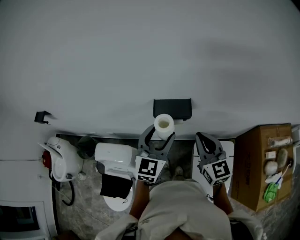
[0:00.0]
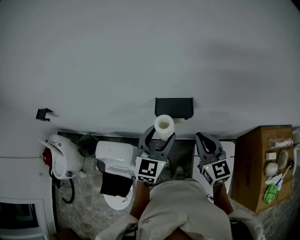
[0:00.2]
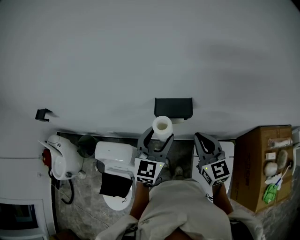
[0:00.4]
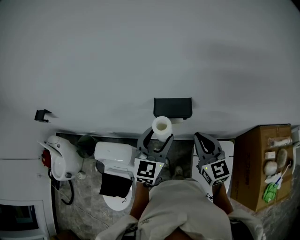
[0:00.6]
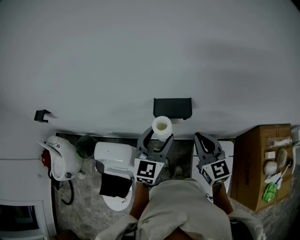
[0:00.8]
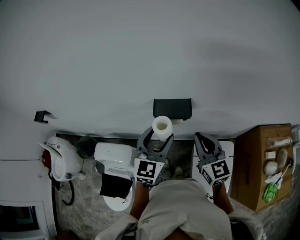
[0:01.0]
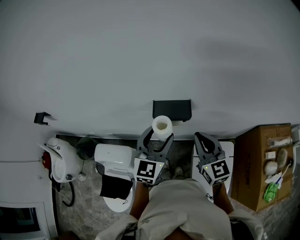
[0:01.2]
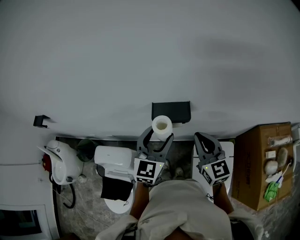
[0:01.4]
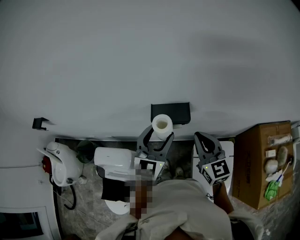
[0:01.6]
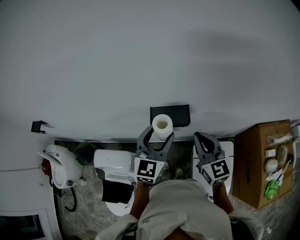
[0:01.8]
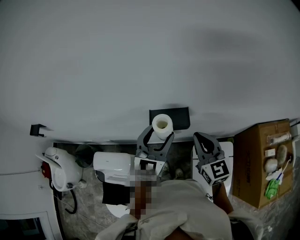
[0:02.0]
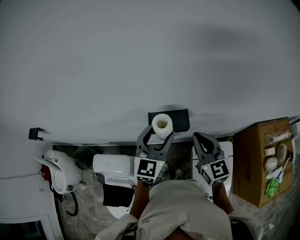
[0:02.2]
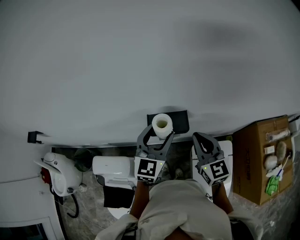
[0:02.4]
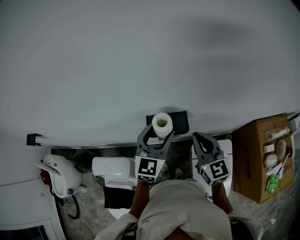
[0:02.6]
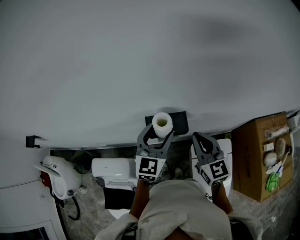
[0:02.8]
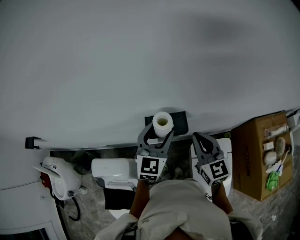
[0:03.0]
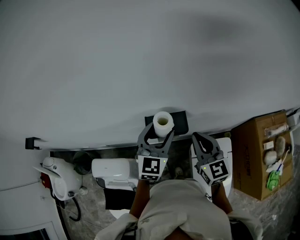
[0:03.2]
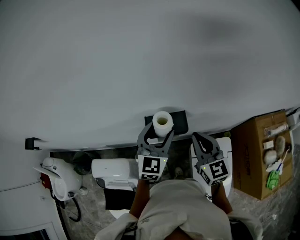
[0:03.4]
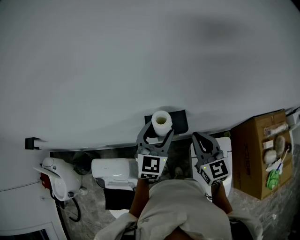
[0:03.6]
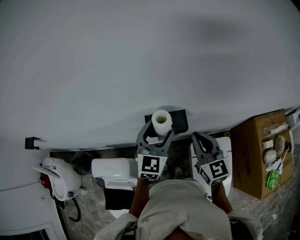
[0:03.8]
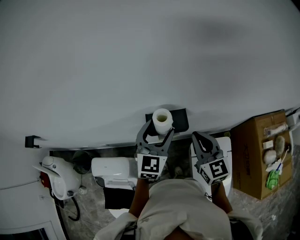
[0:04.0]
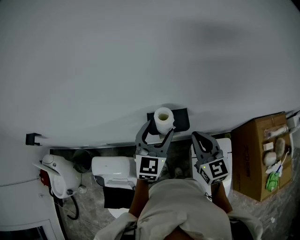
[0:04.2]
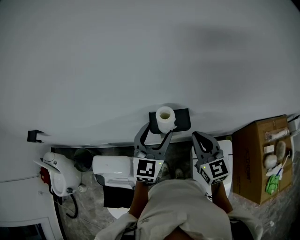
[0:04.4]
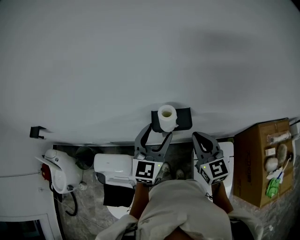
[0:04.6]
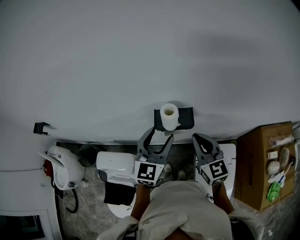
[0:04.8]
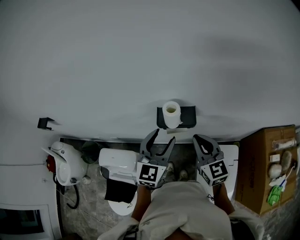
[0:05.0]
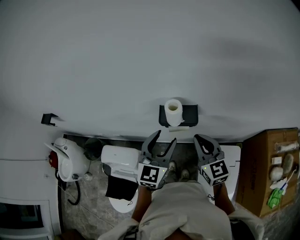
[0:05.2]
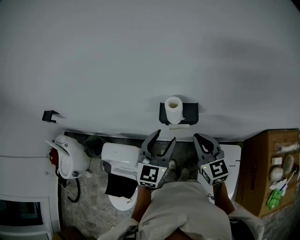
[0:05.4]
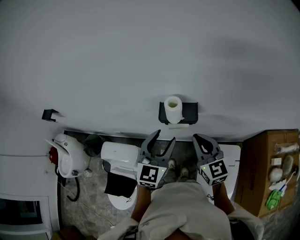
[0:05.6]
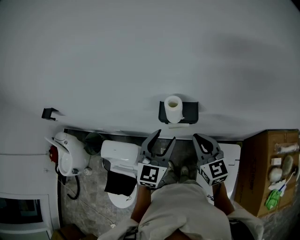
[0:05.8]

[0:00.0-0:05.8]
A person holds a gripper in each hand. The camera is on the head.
0:00.0 to 0:01.4: The grippers stay close to where they were, moving slightly.
0:01.4 to 0:02.8: The two grippers go approximately 5 cm forward.
0:02.8 to 0:04.4: The grippers make only small movements.
0:04.4 to 0:05.8: The left gripper heads backward, covering about 5 cm.

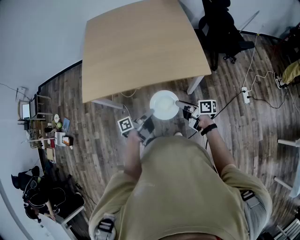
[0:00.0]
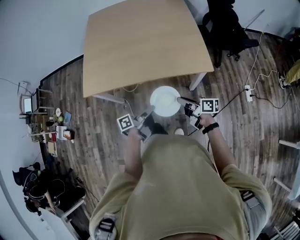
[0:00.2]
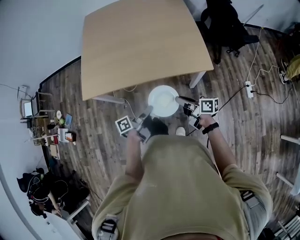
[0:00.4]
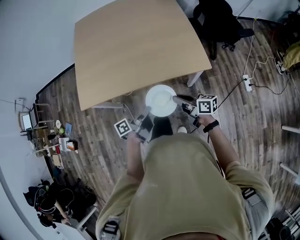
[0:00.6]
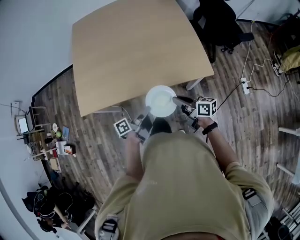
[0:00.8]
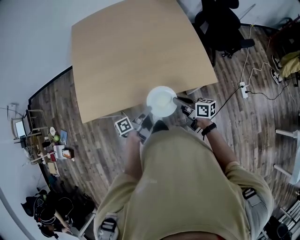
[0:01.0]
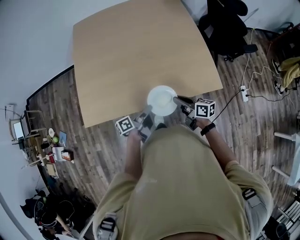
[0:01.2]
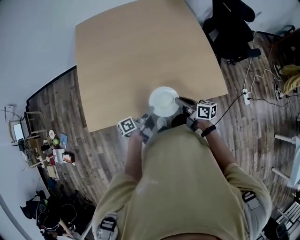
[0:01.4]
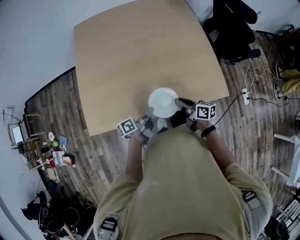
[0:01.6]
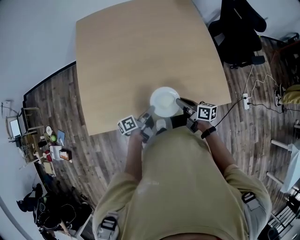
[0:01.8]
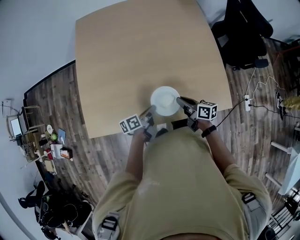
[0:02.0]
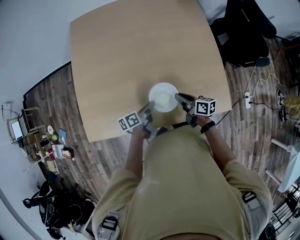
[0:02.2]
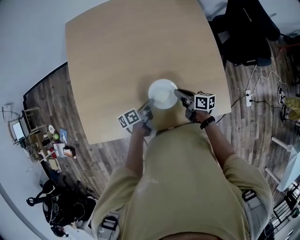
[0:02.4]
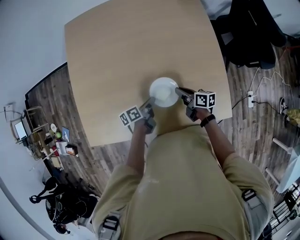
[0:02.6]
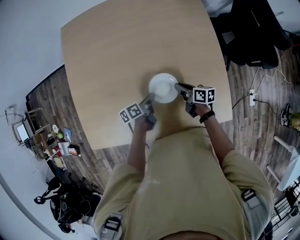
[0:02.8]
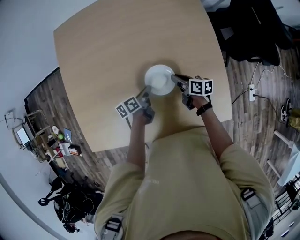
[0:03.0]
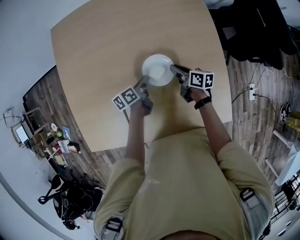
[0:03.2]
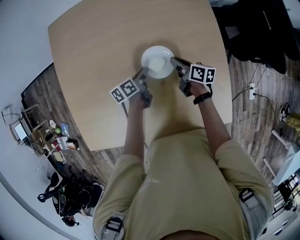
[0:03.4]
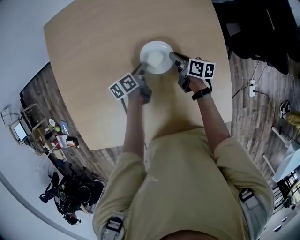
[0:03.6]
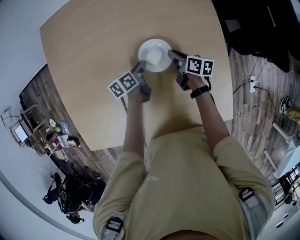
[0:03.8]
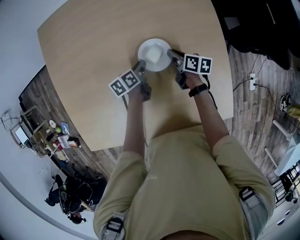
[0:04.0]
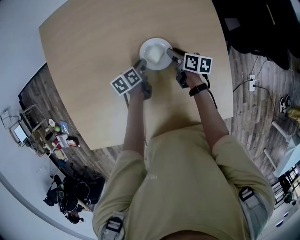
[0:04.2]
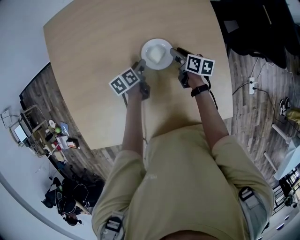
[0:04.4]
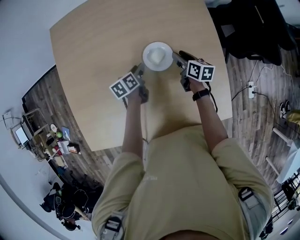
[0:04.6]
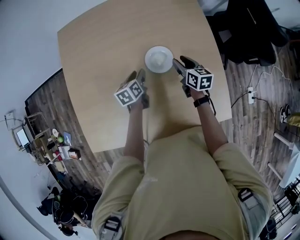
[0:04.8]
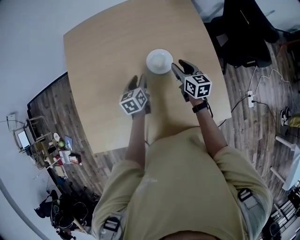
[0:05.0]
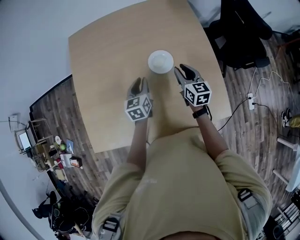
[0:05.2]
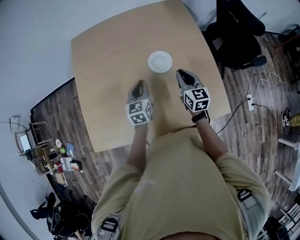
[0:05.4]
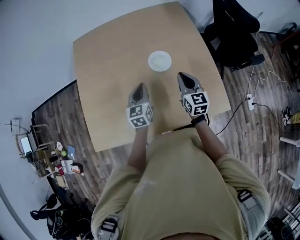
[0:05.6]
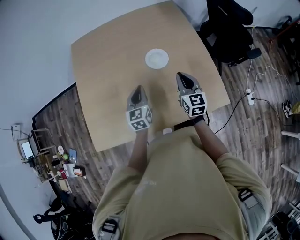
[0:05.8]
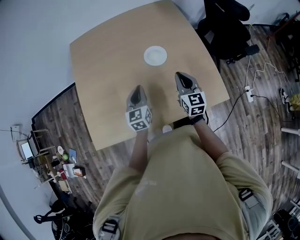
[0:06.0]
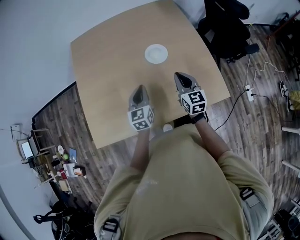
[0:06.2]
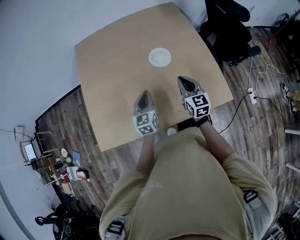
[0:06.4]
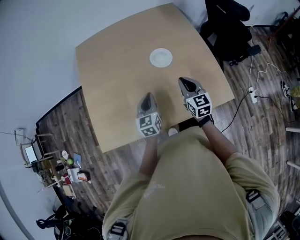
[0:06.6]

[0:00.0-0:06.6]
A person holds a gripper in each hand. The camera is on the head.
0:00.0 to 0:01.6: The grippers both shift forward by about 25 cm.
0:01.6 to 0:03.2: Both grippers travel together forward, some 35 cm. The left gripper rotates approximately 30 degrees.
0:03.2 to 0:05.0: The two grippers go about 10 cm upward. The left gripper changes its angle by approximately 40 degrees, and opens up. Meanwhile the right gripper changes its angle by approximately 40 degrees, and opens.
0:05.0 to 0:06.6: The grippers both shift backward by roughly 20 cm. The right gripper swivels some 20 degrees, and closes up. The left gripper swivels some 20 degrees, and closes.

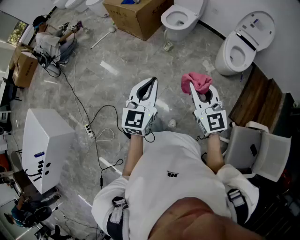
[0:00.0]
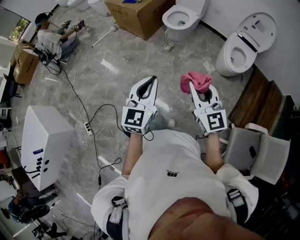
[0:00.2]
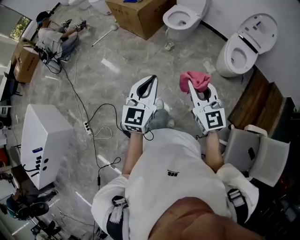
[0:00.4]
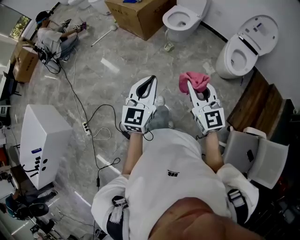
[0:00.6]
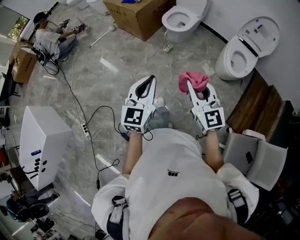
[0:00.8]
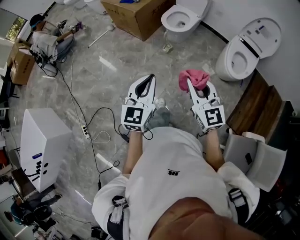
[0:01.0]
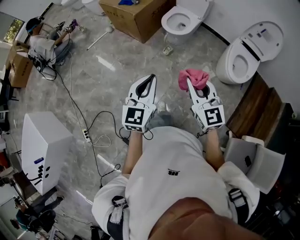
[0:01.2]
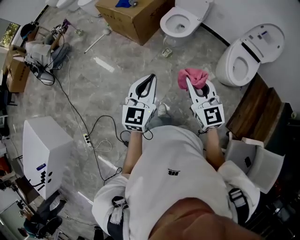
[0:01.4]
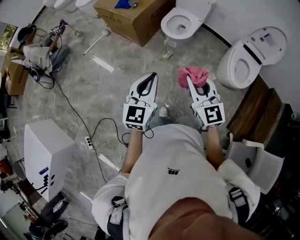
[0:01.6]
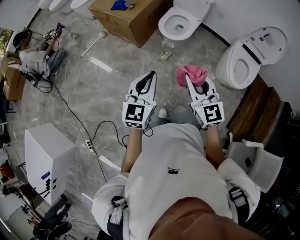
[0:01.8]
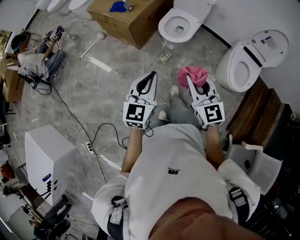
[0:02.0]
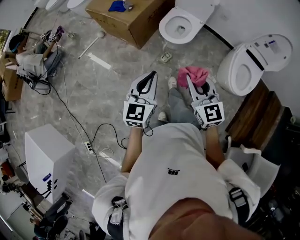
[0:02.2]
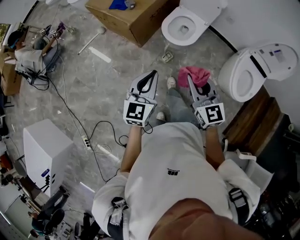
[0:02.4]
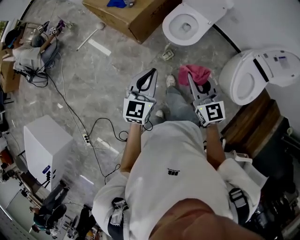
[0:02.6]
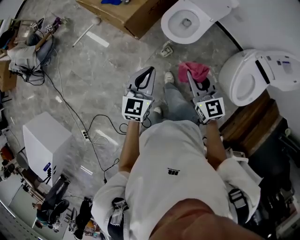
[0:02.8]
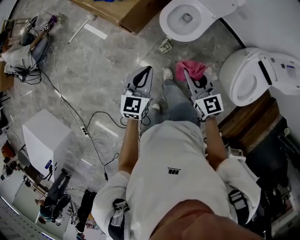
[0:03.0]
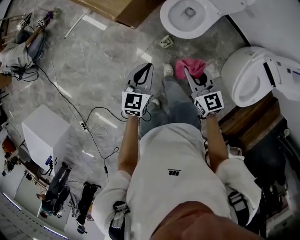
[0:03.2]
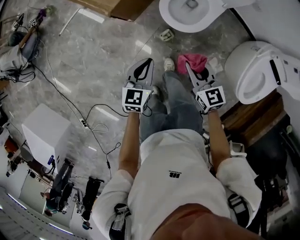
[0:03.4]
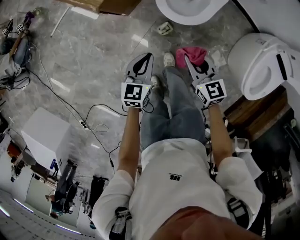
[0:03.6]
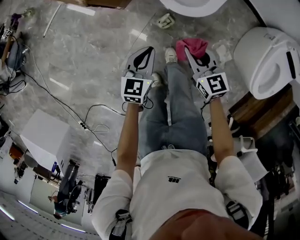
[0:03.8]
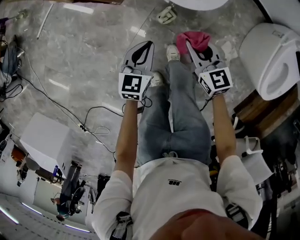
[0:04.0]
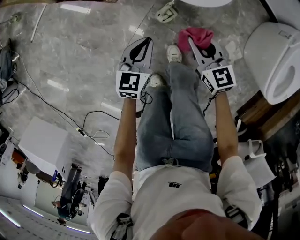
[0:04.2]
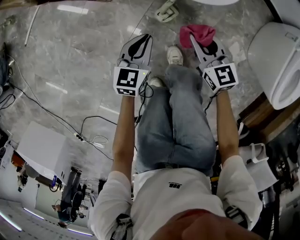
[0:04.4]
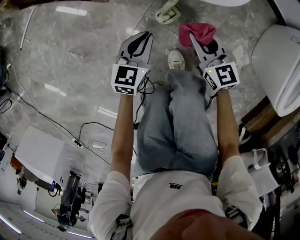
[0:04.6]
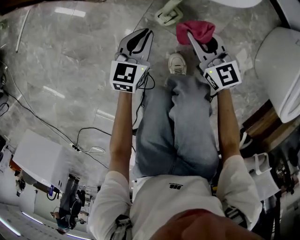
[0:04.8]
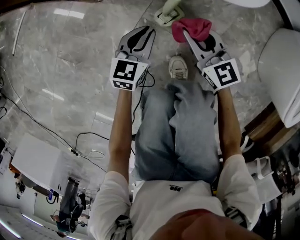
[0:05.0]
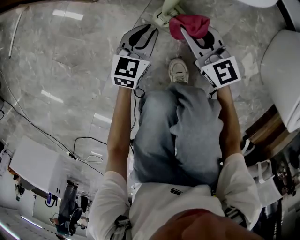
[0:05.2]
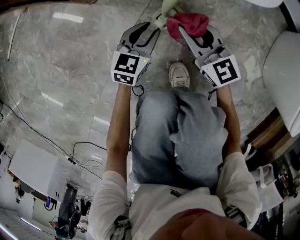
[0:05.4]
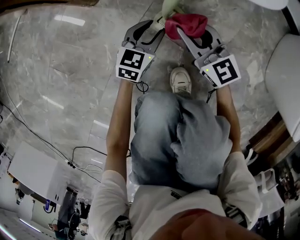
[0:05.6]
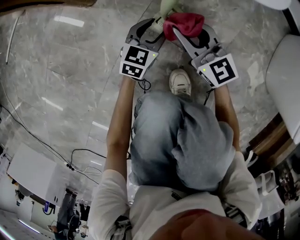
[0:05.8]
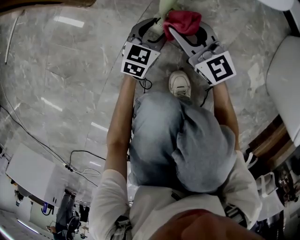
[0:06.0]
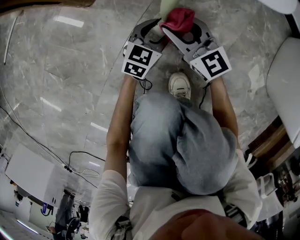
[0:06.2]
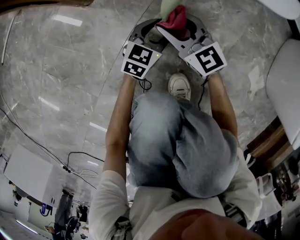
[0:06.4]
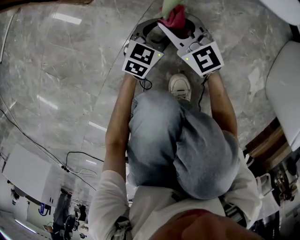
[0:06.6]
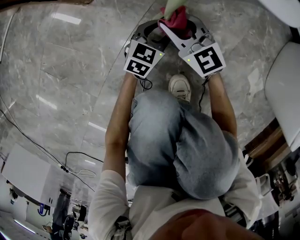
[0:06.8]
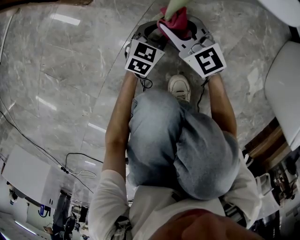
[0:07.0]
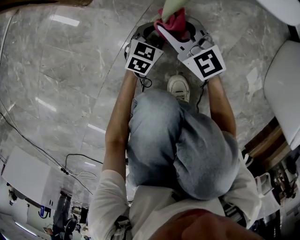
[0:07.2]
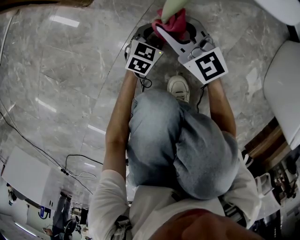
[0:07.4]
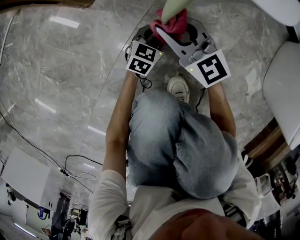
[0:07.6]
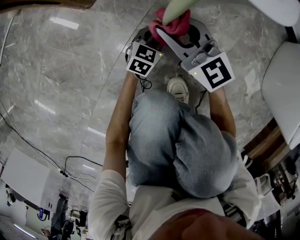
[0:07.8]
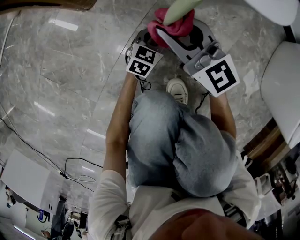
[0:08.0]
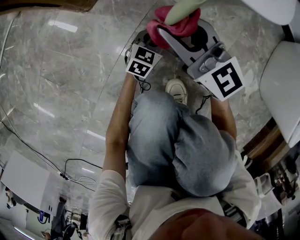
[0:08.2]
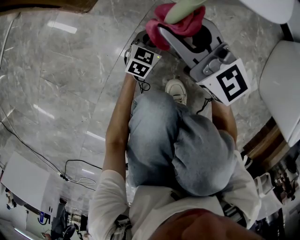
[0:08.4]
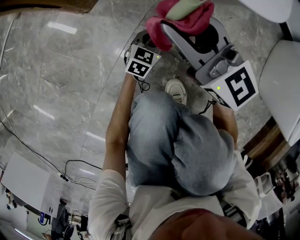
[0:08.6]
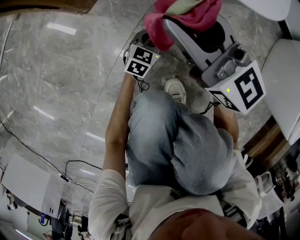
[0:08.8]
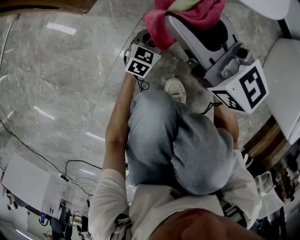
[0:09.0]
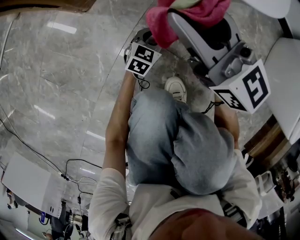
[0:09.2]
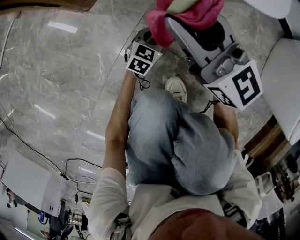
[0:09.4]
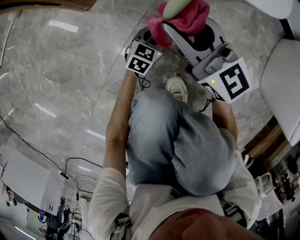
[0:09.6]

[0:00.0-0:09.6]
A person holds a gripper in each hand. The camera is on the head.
0:00.0 to 0:01.6: The grippers both shift forward by roughly 30 cm.
0:01.6 to 0:03.2: Both grippers are carried forward, approximately 40 cm. The grippers both shift downward by some 25 cm. The left gripper swivels about 20 degrees. The right gripper turns by approximately 30 degrees.
0:03.2 to 0:04.8: Both grippers move downward, about 50 cm.
0:04.8 to 0:06.4: The left gripper shifts roughly 20 cm downward, and opens up. The right gripper goes some 20 cm downward and to the left, and opens.
0:06.4 to 0:08.0: The left gripper closes up, while the right gripper heads upward, covering roughly 10 cm.

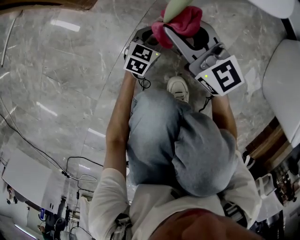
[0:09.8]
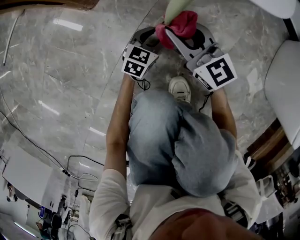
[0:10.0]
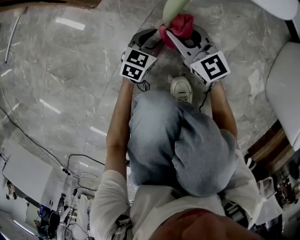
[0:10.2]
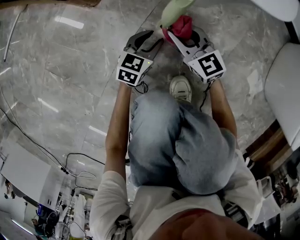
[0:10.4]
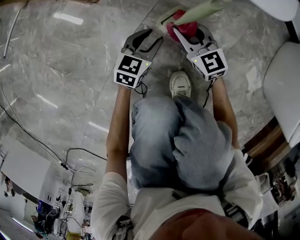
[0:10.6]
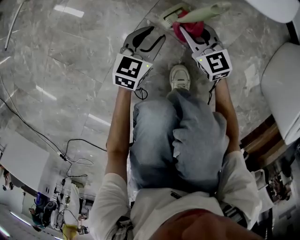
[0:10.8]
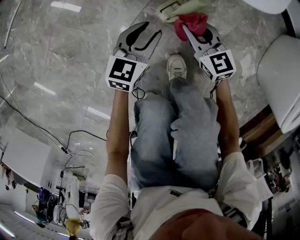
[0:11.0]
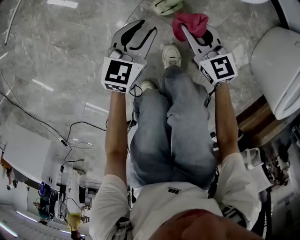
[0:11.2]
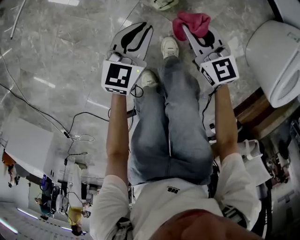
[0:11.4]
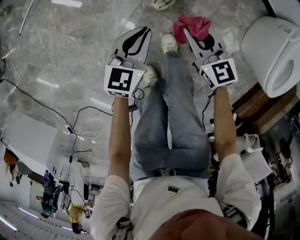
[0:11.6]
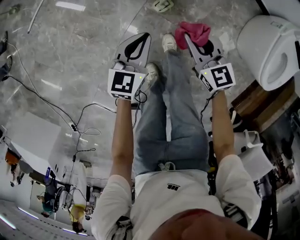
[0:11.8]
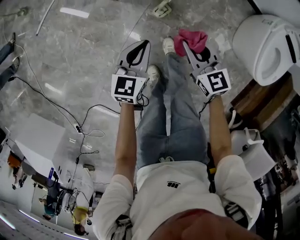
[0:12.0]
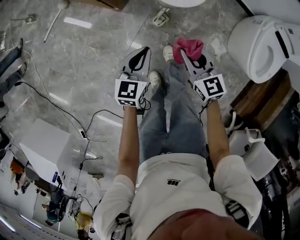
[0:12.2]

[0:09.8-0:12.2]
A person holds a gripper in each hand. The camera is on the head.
0:09.8 to 0:11.0: The left gripper heads upward, covering about 20 cm; the right gripper changes its angle by roughly 20 degrees.
0:11.0 to 0:12.2: The grippers both shift upward by approximately 50 cm. The left gripper closes its fingers.
